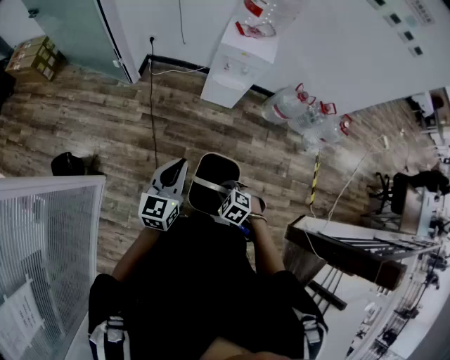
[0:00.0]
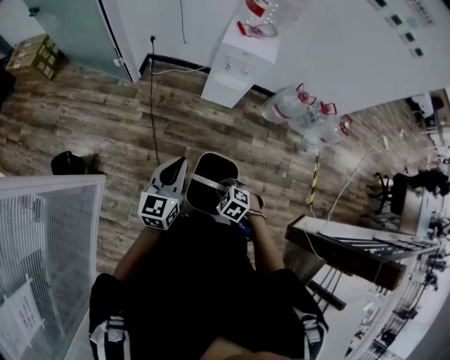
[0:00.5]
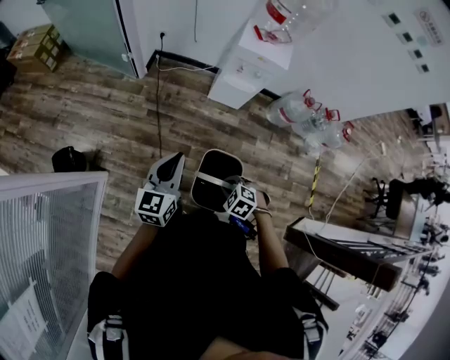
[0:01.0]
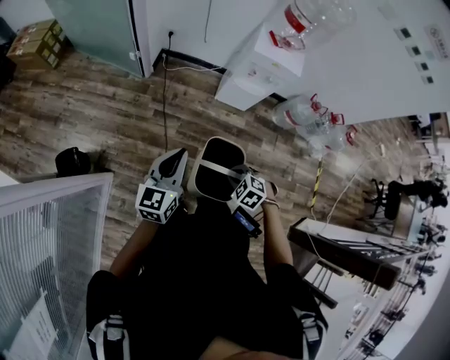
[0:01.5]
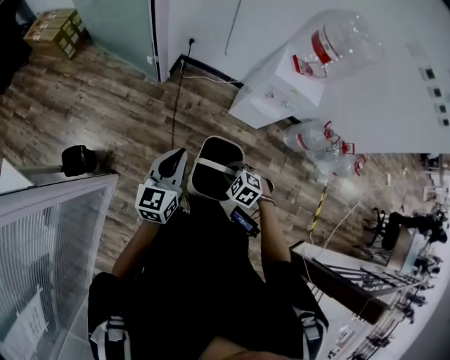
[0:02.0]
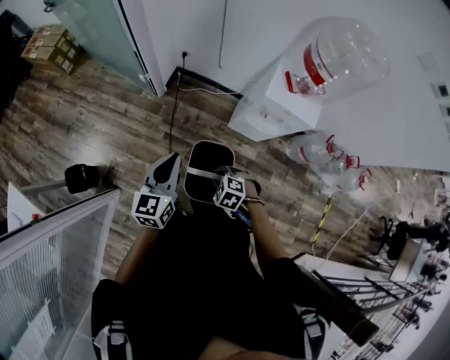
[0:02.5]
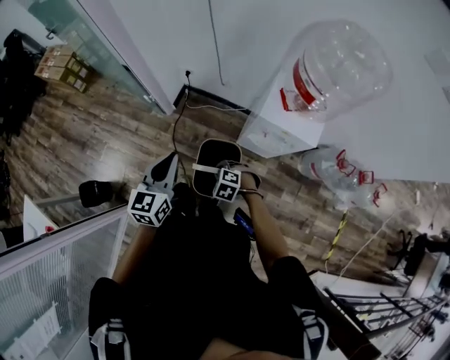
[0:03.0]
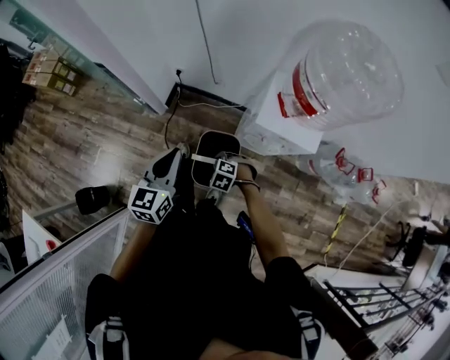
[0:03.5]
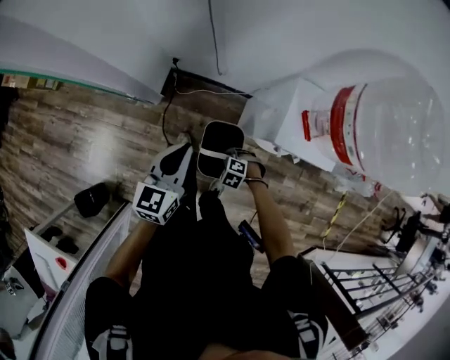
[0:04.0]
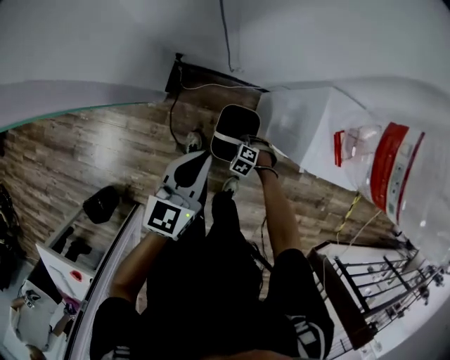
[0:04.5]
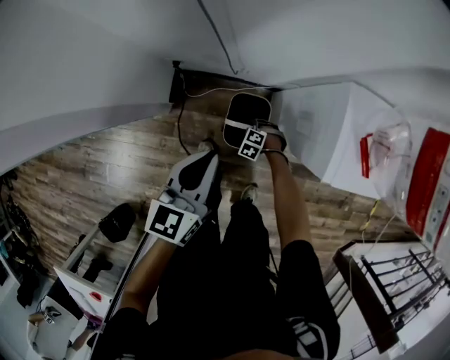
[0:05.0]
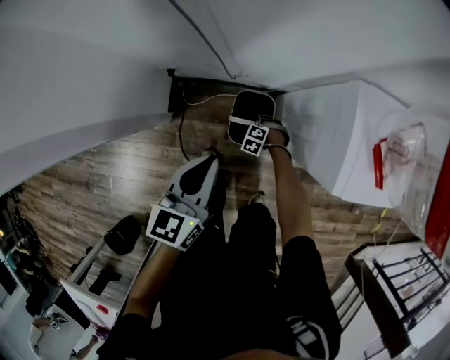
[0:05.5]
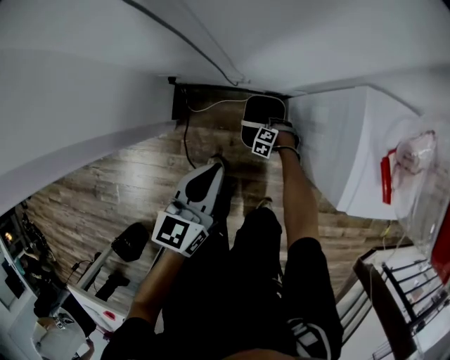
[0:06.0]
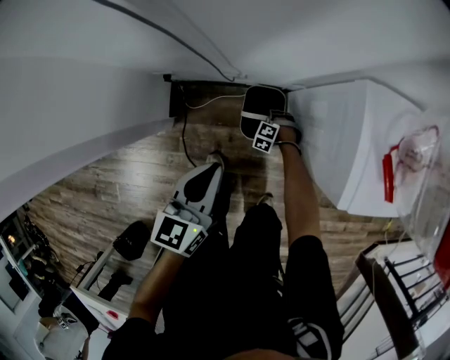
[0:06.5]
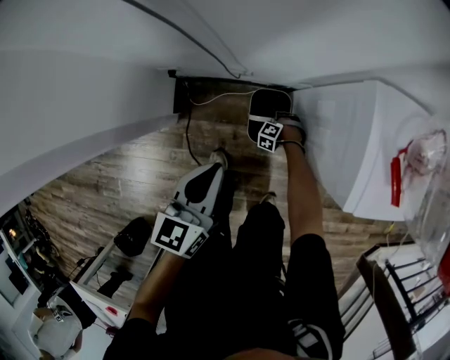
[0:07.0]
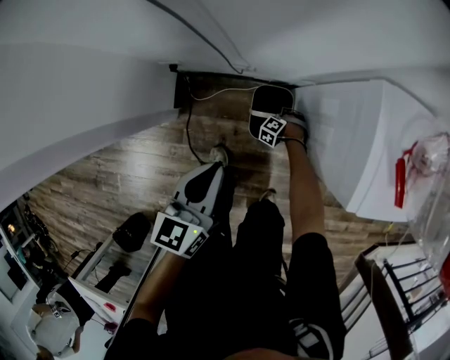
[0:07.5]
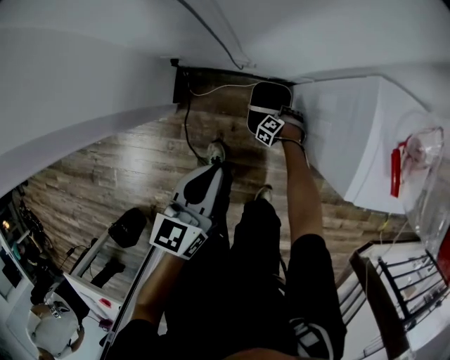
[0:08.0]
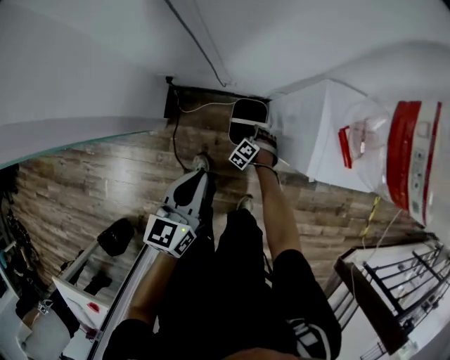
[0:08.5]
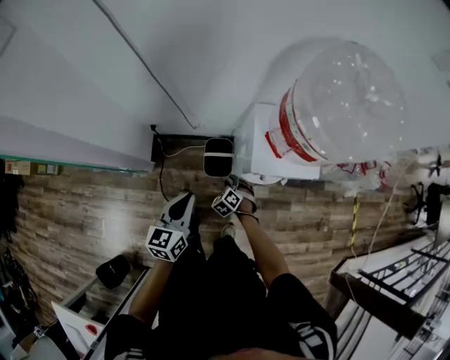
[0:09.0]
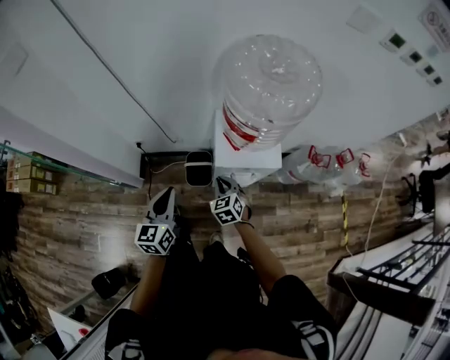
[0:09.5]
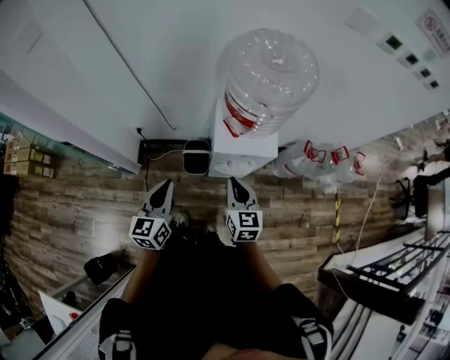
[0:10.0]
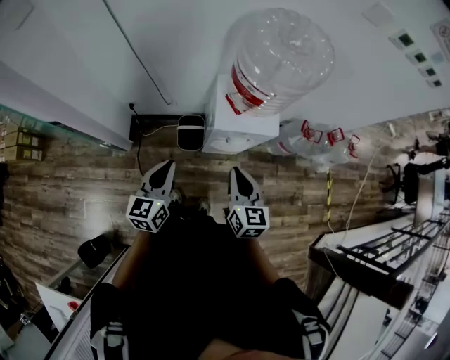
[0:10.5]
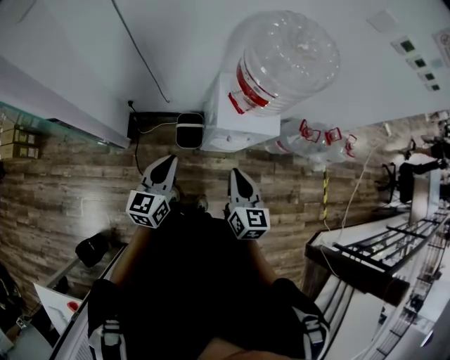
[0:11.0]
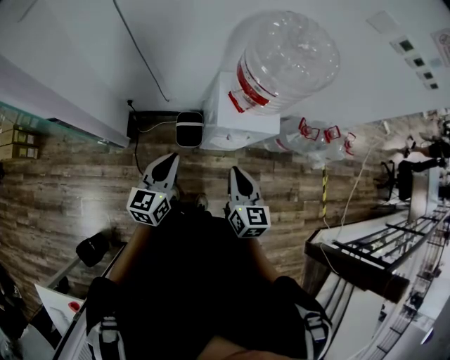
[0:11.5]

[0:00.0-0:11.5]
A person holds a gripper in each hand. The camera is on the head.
0:00.0 to 0:02.0: The left gripper ends up roughly 25 cm from where it was; the right gripper shifts by approximately 25 cm.
0:02.0 to 0:04.0: The left gripper changes place by about 40 cm, while the right gripper changes place by about 40 cm.
0:04.0 to 0:06.0: The right gripper moves downward, approximately 30 cm, while the left gripper is displaced downward by roughly 20 cm.
0:06.0 to 0:07.5: The right gripper ends up approximately 5 cm from where it was.
0:07.5 to 0:09.5: The right gripper heads upward, covering roughly 60 cm, angles its fingers upward, by approximately 30 degrees, and opens, then closes once more, while the left gripper is displaced upward by some 25 cm.
0:09.5 to 0:11.5: The left gripper changes place by some 5 cm; the right gripper is displaced upward and backward by about 20 cm, and changes its angle by about 40 degrees.

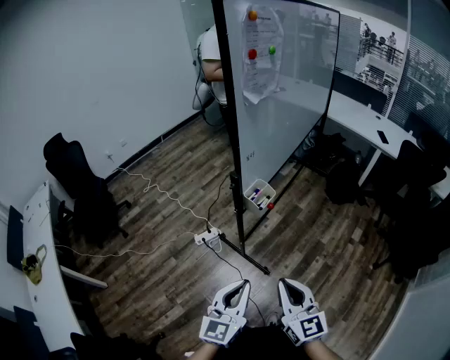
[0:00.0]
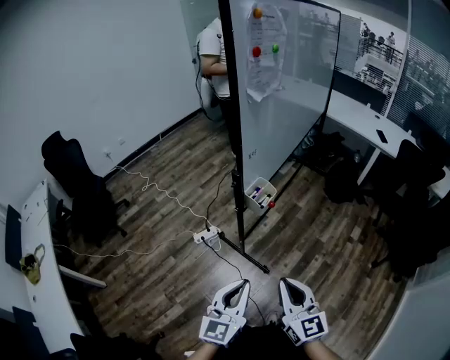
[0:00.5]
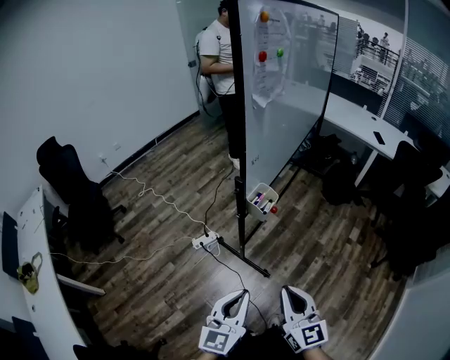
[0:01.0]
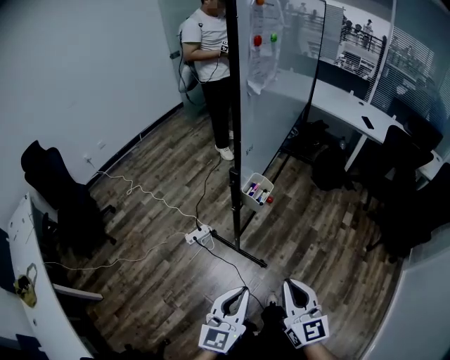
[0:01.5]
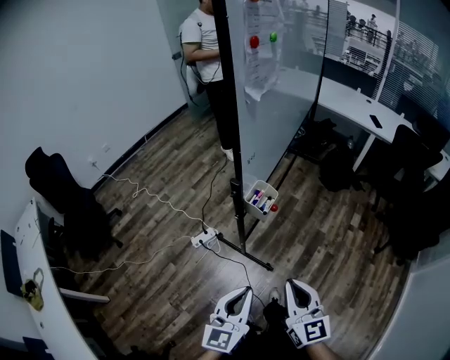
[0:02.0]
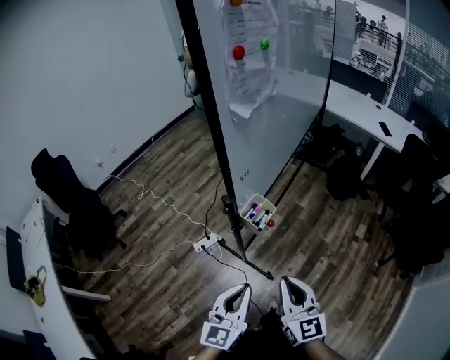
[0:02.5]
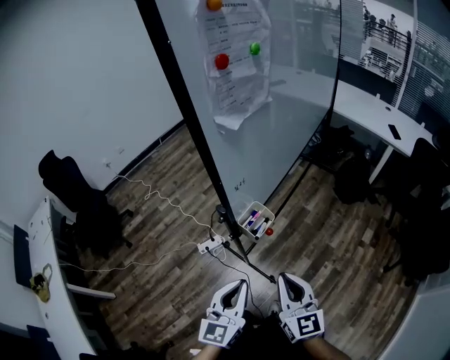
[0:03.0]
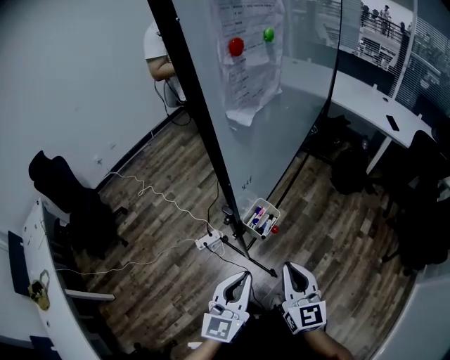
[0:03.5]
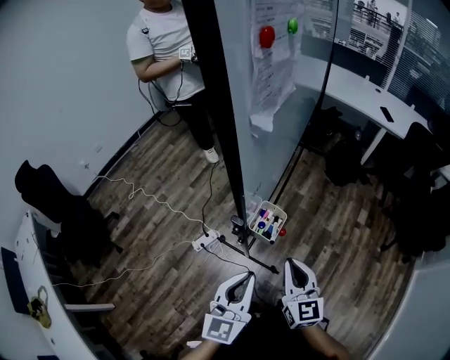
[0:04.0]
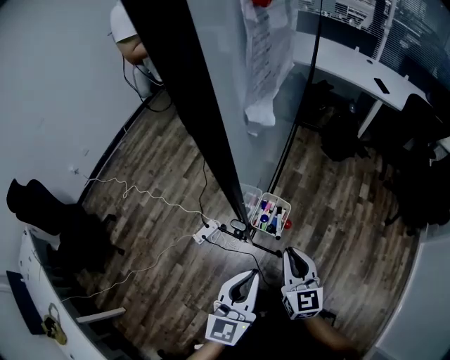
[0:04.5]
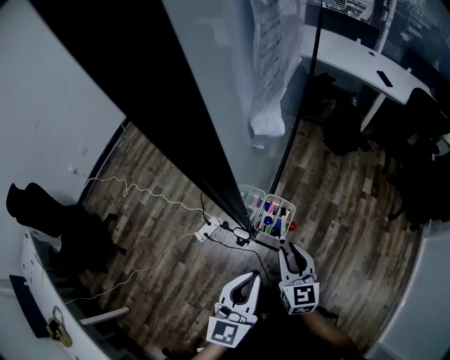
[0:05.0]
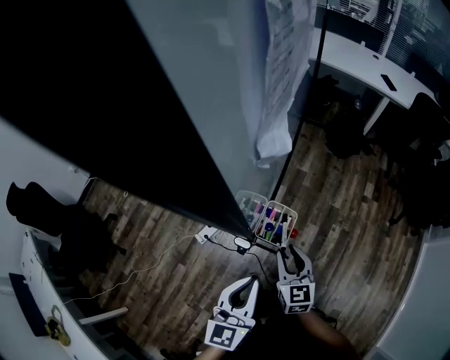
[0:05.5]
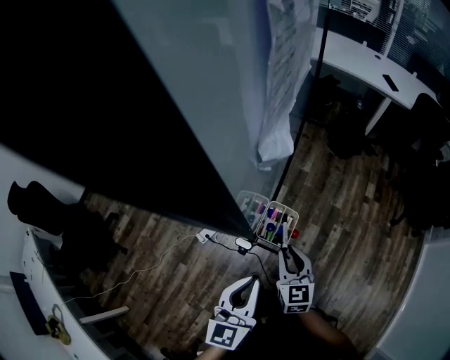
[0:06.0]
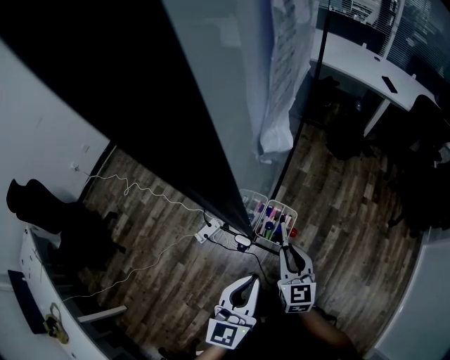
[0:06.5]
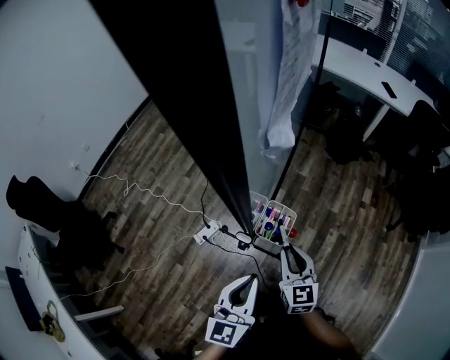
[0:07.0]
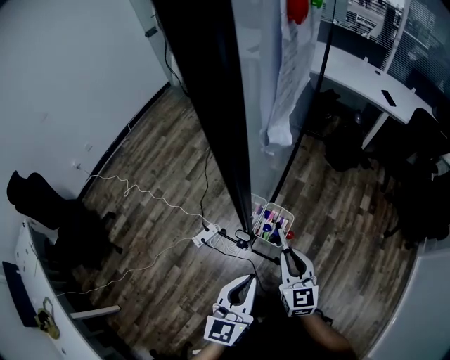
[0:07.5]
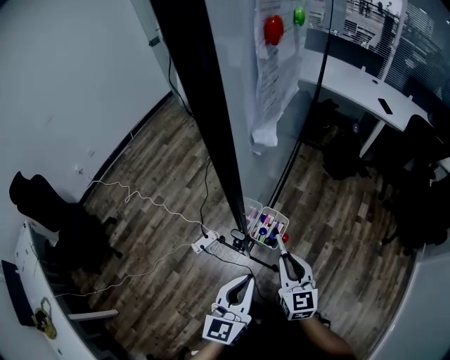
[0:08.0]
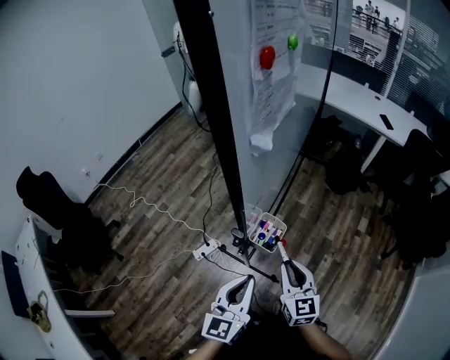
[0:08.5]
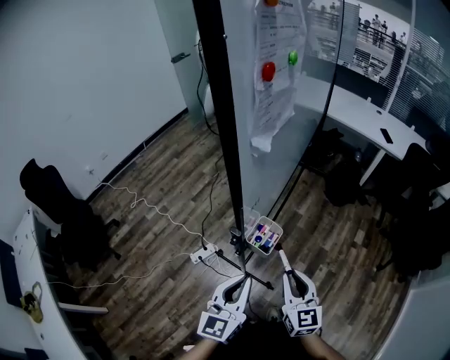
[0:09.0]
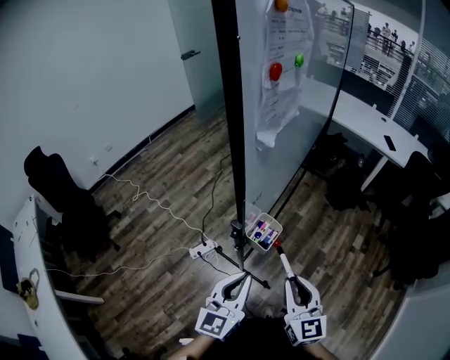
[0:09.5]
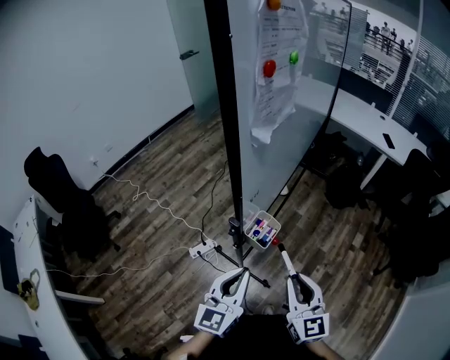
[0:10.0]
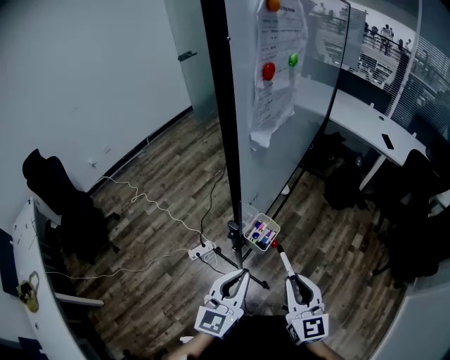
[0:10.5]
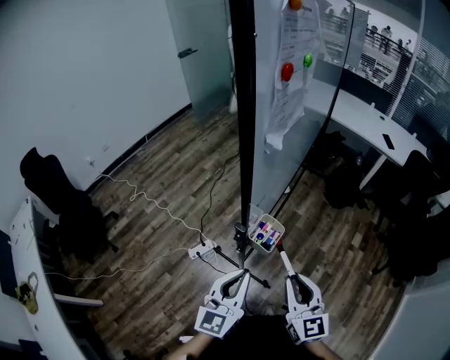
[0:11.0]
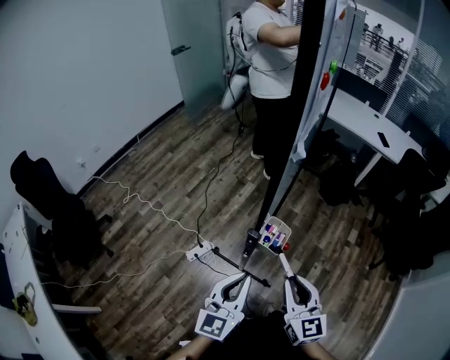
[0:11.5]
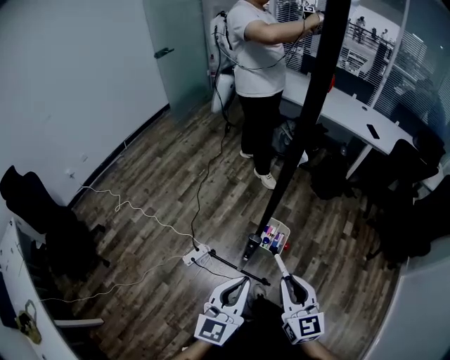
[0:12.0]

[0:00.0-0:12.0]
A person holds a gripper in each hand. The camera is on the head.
0:00.0 to 0:02.0: The grippers stay close to where they were, moving slightly.
0:02.0 to 0:04.0: Both grippers travel together forward, roughly 20 cm.
0:04.0 to 0:06.0: The left gripper ends up some 5 cm from where it was. Meanwhile the right gripper heads downward and forward, covering some 10 cm.
0:06.0 to 0:08.0: The right gripper moves some 5 cm.
0:08.0 to 0:10.0: The right gripper moves upward, backward and to the right, about 15 cm. The left gripper changes place by some 5 cm.
0:10.0 to 0:12.0: Both grippers travel together to the left, some 5 cm.

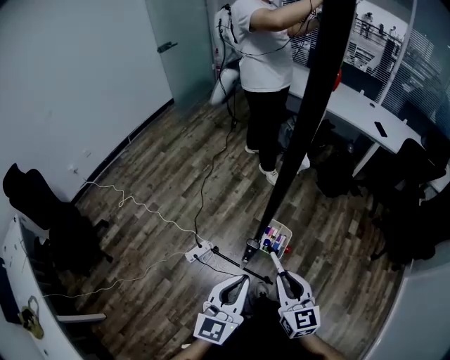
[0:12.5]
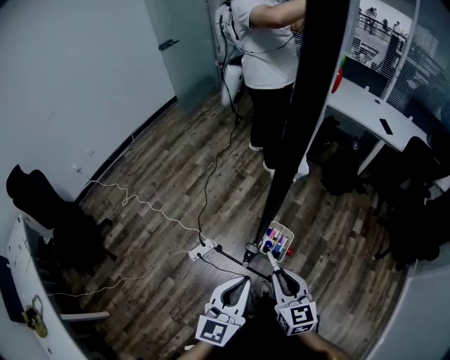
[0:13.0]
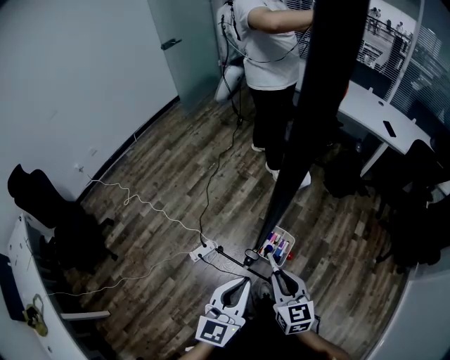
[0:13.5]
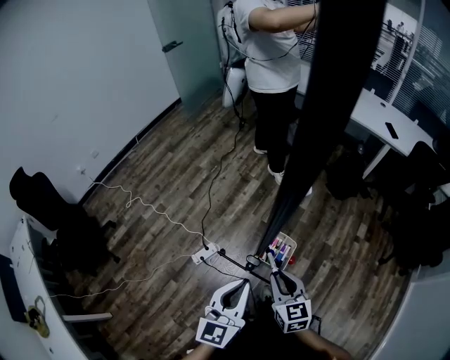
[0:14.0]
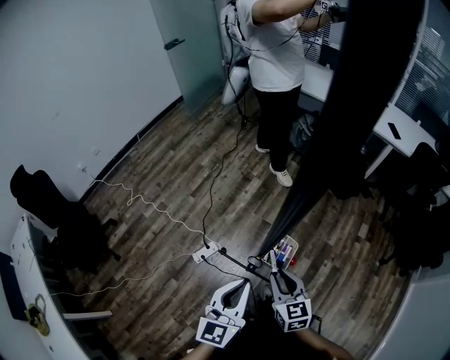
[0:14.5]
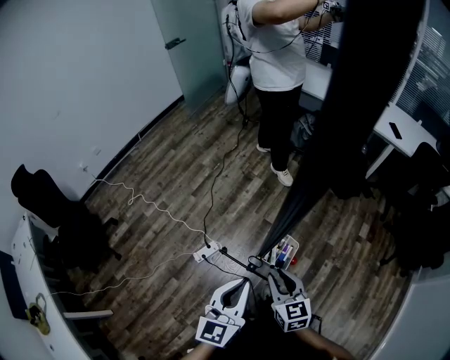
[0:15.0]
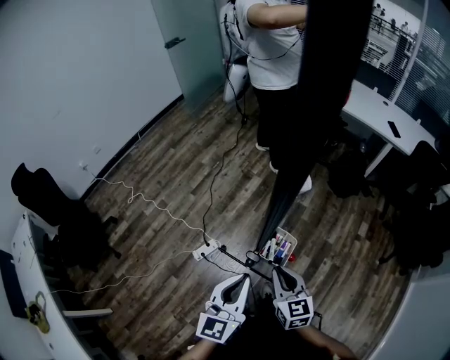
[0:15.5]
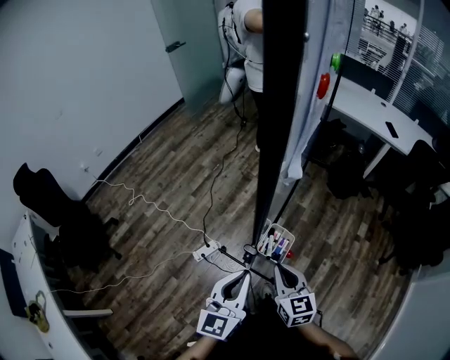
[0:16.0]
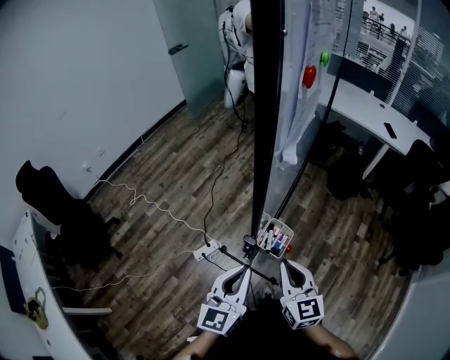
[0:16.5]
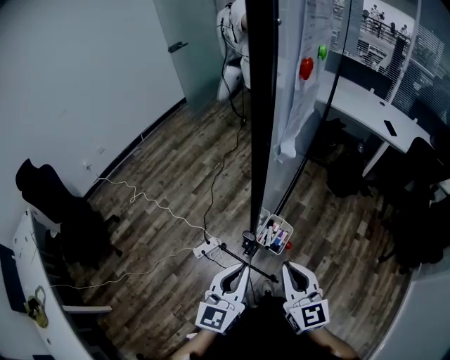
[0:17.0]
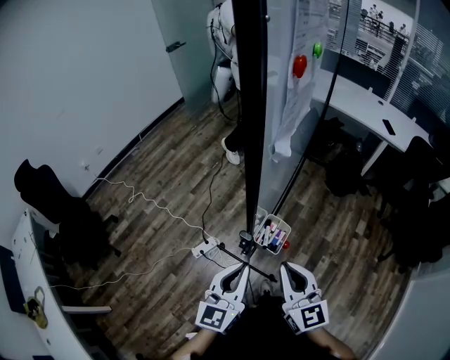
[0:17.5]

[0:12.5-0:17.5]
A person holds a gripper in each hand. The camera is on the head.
0:12.5 to 0:15.0: The right gripper shifts about 5 cm downward.
0:15.0 to 0:17.5: The right gripper moves upward, some 10 cm, and rotates roughly 20 degrees.
